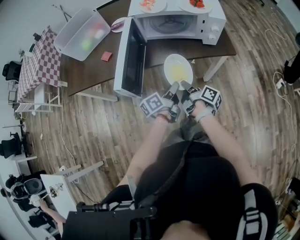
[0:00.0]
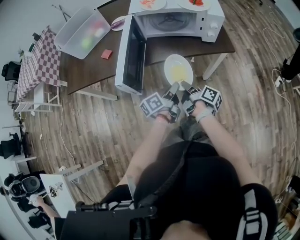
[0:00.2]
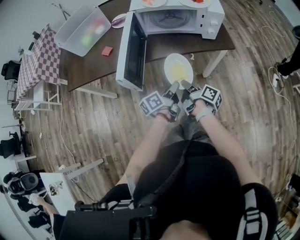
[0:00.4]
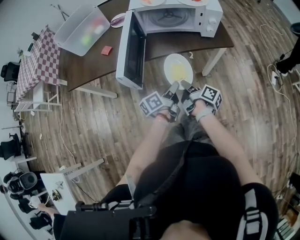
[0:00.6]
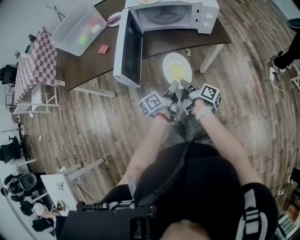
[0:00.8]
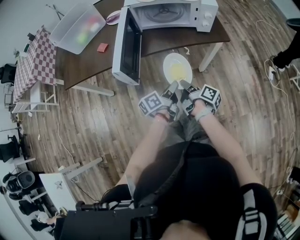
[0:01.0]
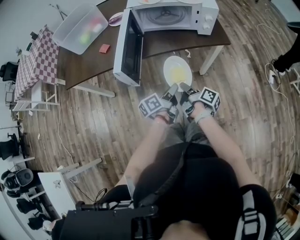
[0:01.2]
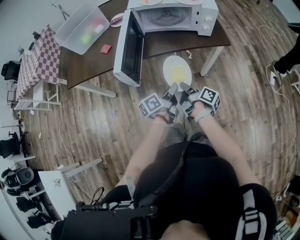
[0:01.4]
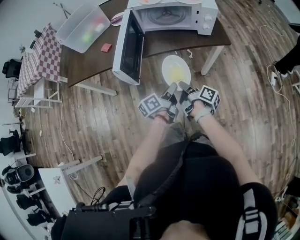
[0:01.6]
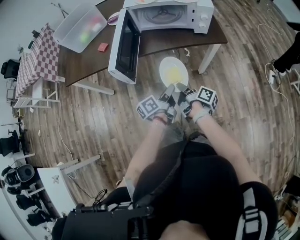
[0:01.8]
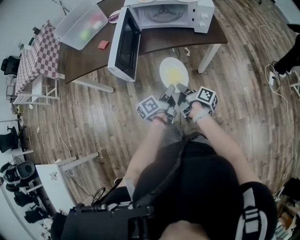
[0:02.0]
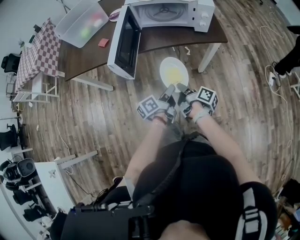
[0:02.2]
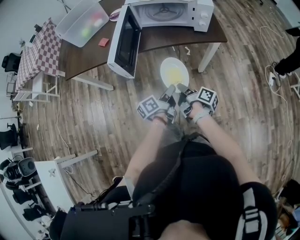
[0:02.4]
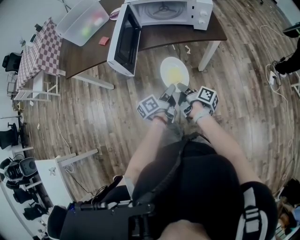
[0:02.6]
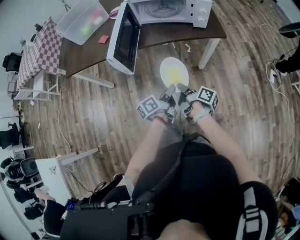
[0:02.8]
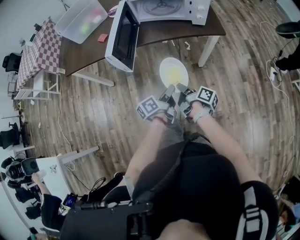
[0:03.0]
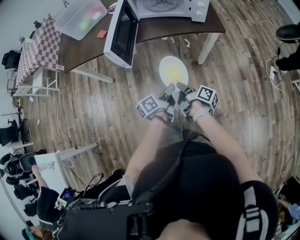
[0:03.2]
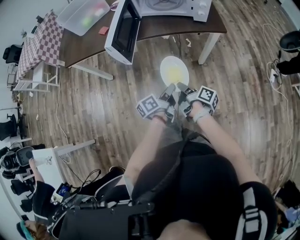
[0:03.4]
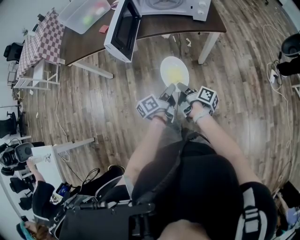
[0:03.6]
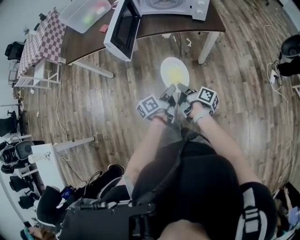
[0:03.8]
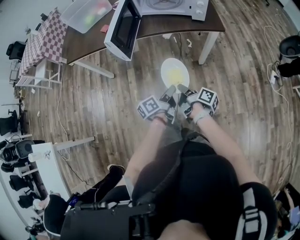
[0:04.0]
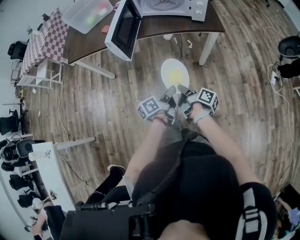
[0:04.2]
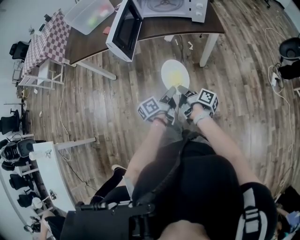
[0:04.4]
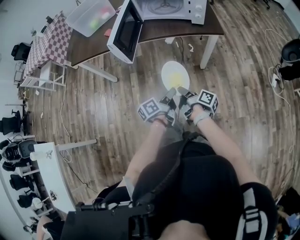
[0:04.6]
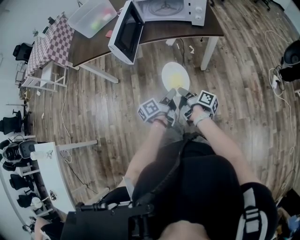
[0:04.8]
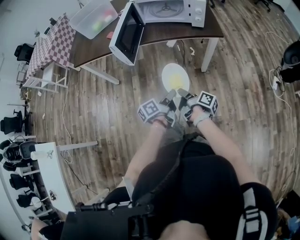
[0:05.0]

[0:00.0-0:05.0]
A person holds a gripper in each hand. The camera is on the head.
0:00.0 to 0:01.6: The left gripper shifts by about 10 cm.
0:01.6 to 0:03.4: The left gripper shifts by roughly 10 cm.

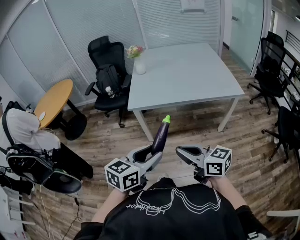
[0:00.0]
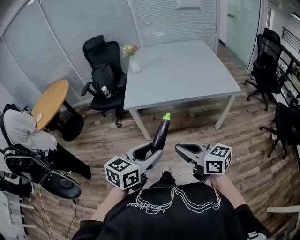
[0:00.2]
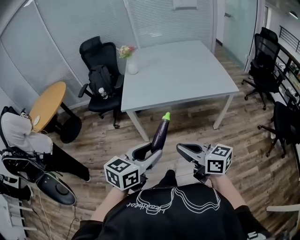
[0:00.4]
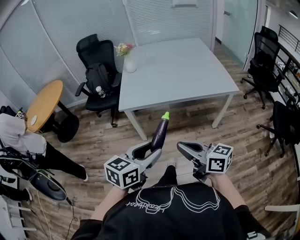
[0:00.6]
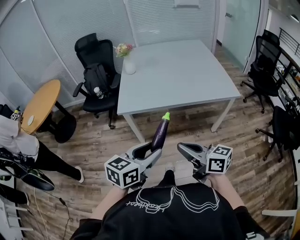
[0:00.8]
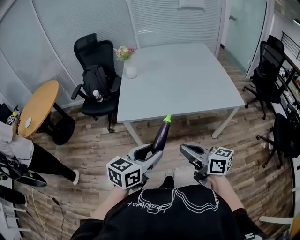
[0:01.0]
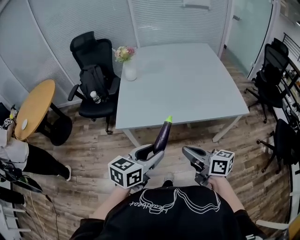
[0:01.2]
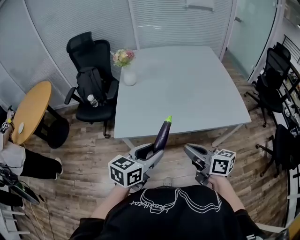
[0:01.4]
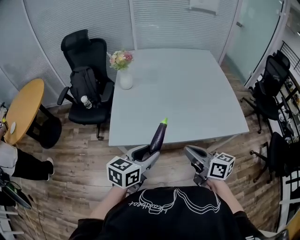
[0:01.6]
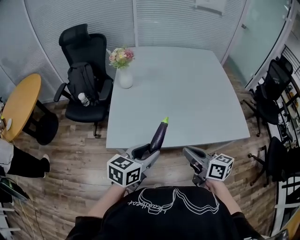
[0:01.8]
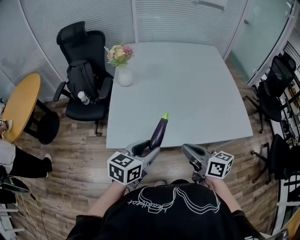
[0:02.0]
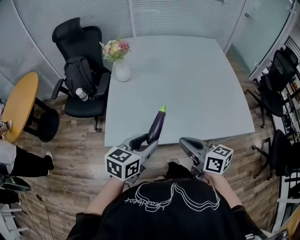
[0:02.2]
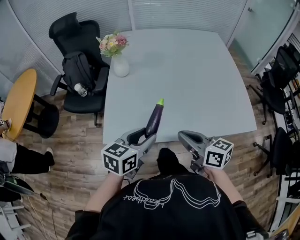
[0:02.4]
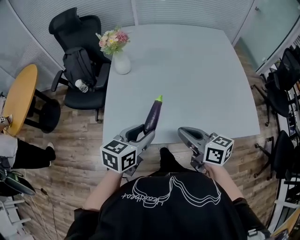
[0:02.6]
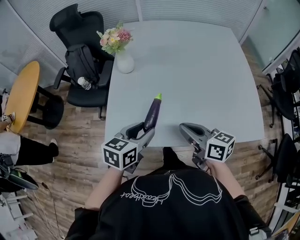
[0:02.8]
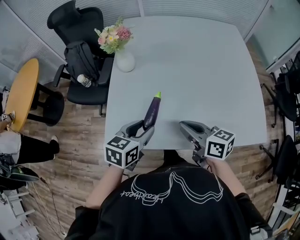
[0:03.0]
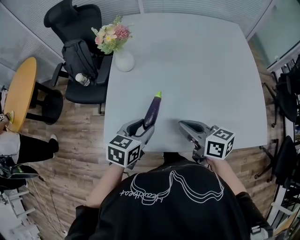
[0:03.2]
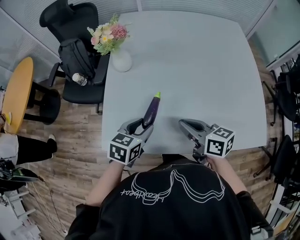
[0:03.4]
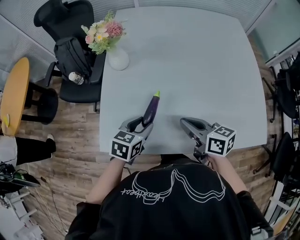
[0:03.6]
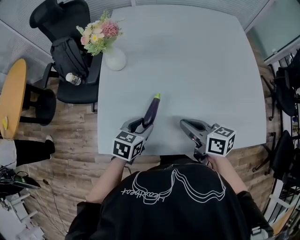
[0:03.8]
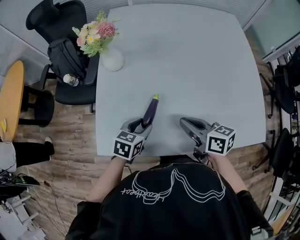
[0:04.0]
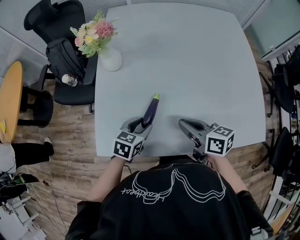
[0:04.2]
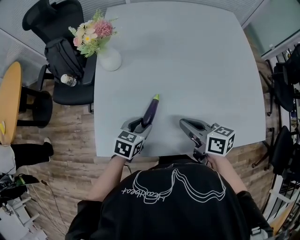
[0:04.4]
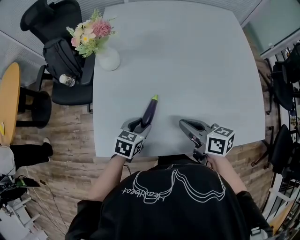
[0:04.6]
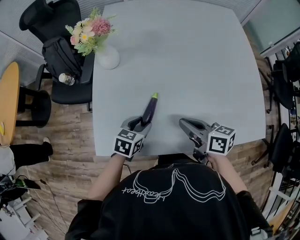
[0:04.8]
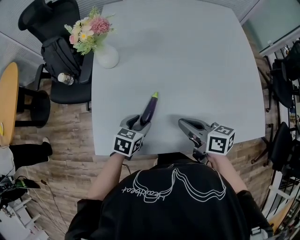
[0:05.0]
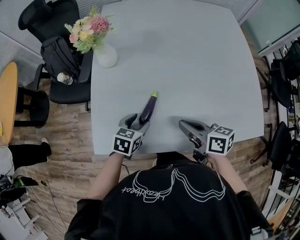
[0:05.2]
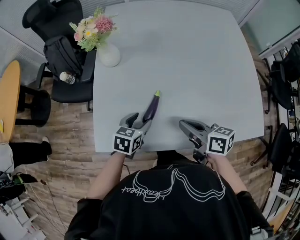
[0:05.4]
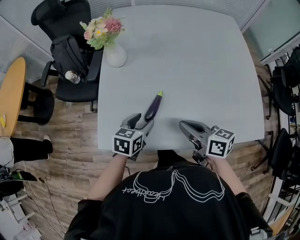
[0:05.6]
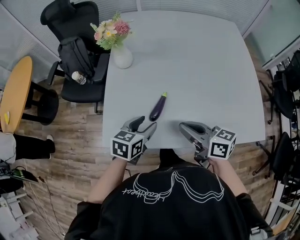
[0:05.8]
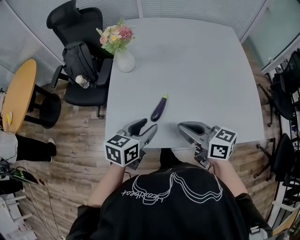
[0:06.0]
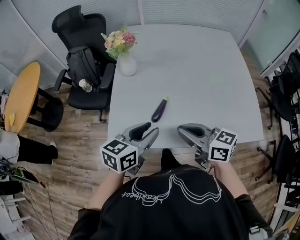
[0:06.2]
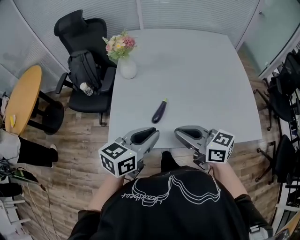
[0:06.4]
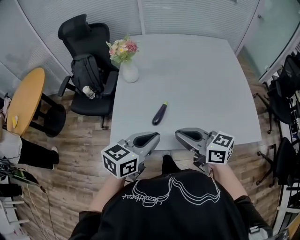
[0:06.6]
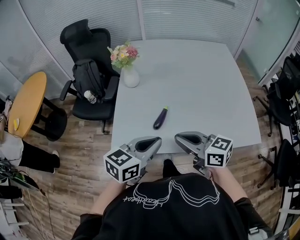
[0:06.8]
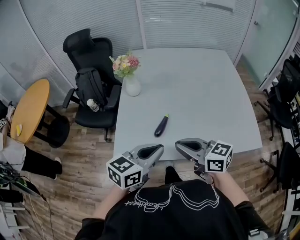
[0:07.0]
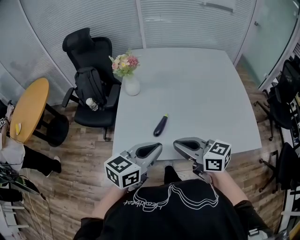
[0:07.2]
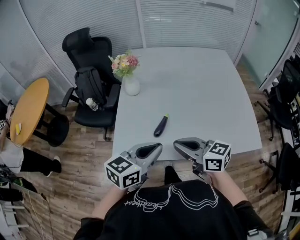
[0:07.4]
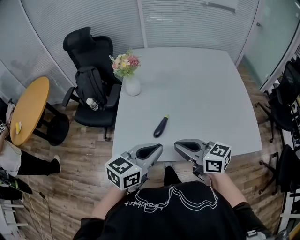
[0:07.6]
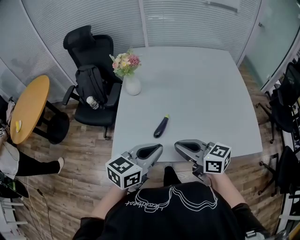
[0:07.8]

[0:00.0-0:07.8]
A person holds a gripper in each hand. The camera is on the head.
0:00.0 to 0:01.6: The grippers both shift forward by some 35 cm.
0:01.6 to 0:03.2: The left gripper shifts approximately 25 cm forward and downward; the right gripper is displaced forward by approximately 25 cm.
0:03.2 to 0:04.6: The right gripper heads downward, covering roughly 5 cm. Meanwhile the left gripper goes roughly 10 cm downward.
0:04.6 to 0:06.2: The right gripper travels upward, backward and to the left by roughly 15 cm, and turns by roughly 20 degrees; the left gripper shifts approximately 20 cm upward and backward, and swivels roughly 30 degrees.
0:06.2 to 0:07.8: The left gripper shifts by some 5 cm, and closes.

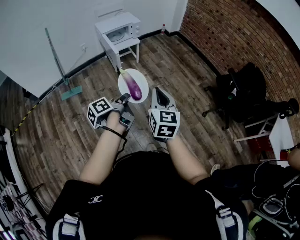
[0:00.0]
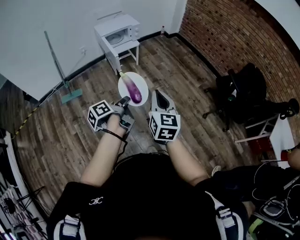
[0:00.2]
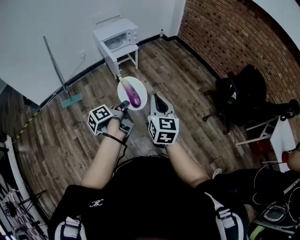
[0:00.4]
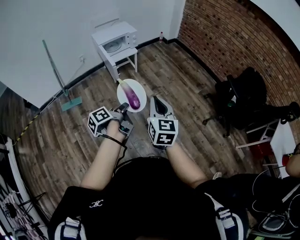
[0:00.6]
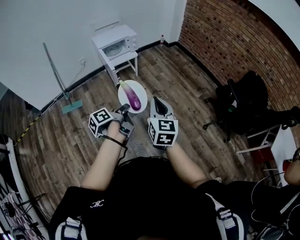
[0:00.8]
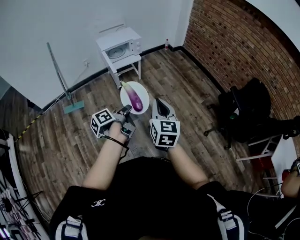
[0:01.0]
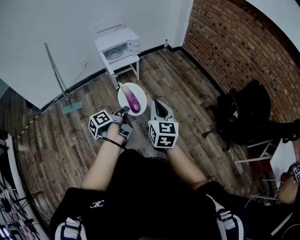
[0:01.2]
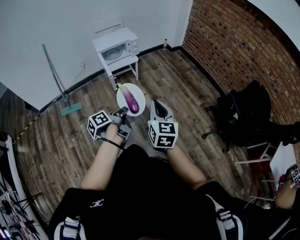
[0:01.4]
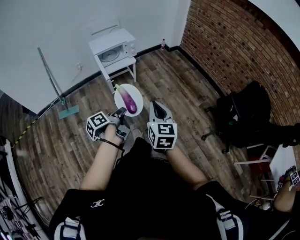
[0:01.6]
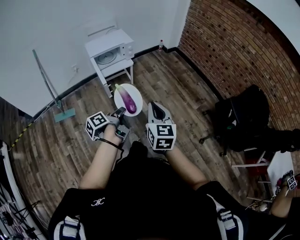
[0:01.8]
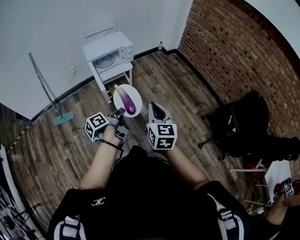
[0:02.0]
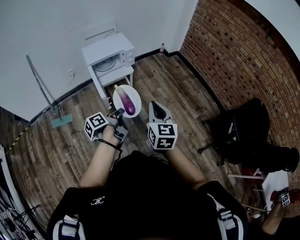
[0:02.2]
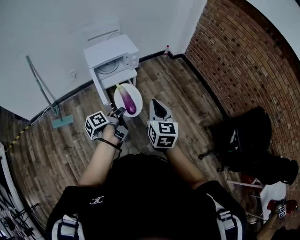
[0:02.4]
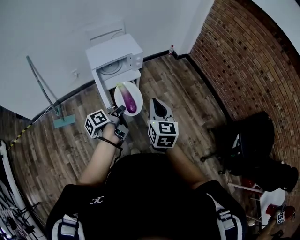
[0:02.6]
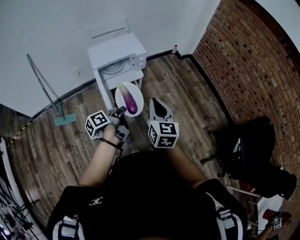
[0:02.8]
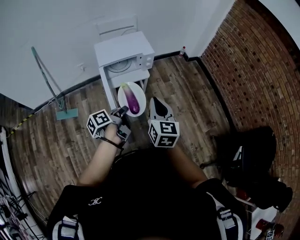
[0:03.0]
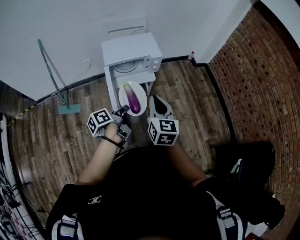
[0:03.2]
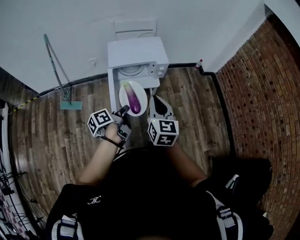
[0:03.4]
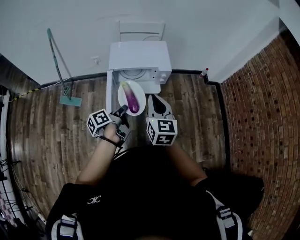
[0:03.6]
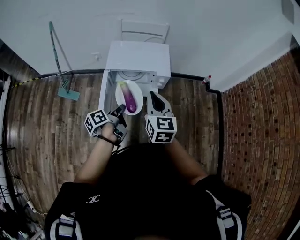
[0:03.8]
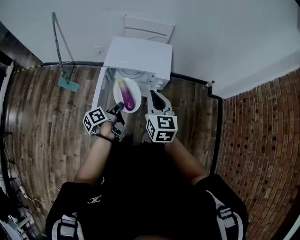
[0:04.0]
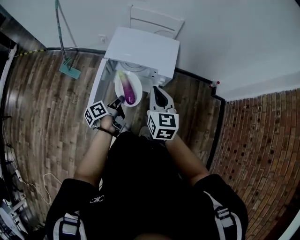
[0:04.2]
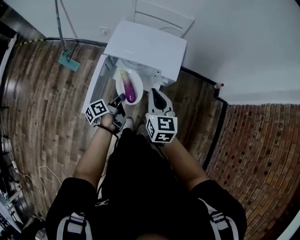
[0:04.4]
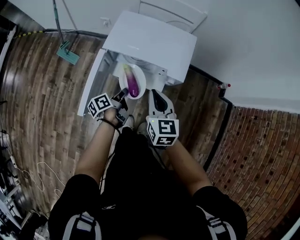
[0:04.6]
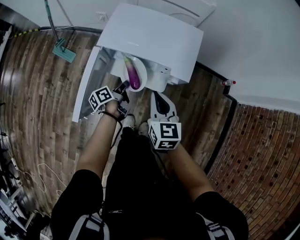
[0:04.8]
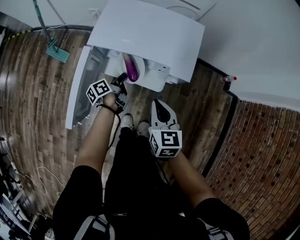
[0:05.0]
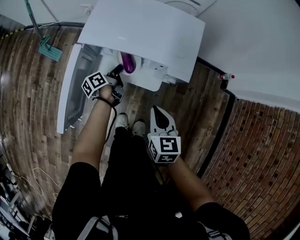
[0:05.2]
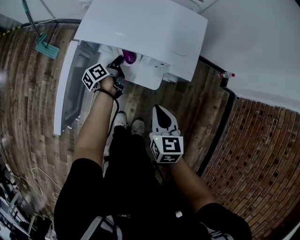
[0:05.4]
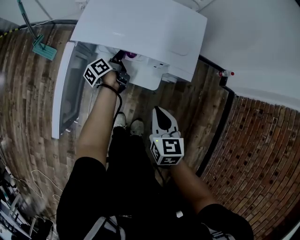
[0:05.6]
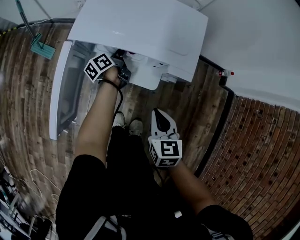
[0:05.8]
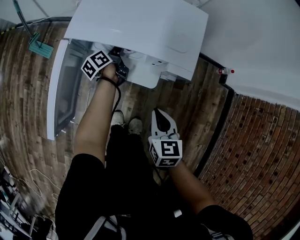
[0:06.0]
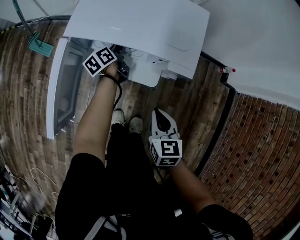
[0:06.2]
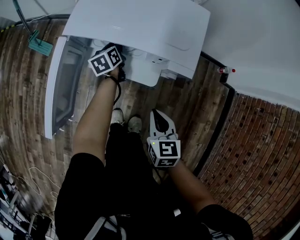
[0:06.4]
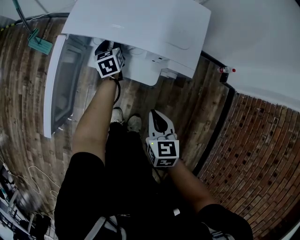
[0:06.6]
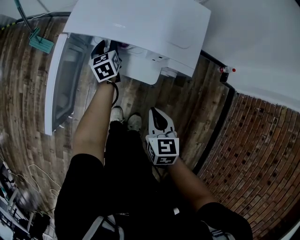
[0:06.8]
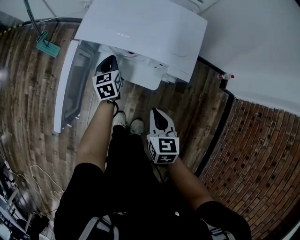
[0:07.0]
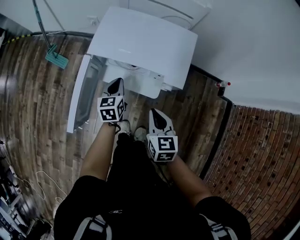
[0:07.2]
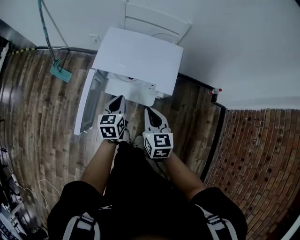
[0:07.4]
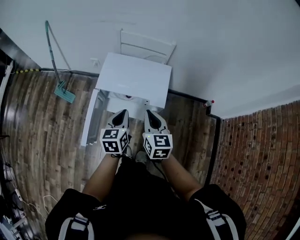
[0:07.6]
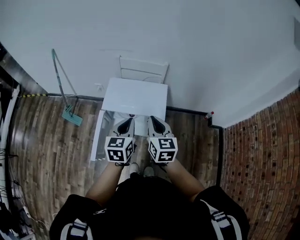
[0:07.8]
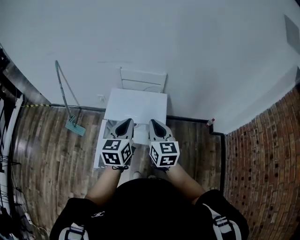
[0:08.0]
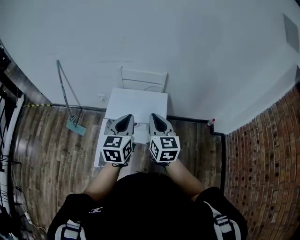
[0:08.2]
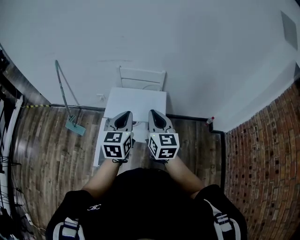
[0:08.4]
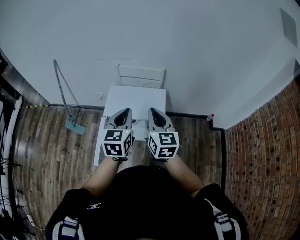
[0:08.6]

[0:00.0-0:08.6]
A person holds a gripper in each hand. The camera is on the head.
0:00.0 to 0:01.4: The right gripper ends up roughly 15 cm from where it was.
0:01.4 to 0:02.8: The right gripper moves some 40 cm.
0:02.8 to 0:04.4: The right gripper shifts by about 40 cm, and turns by some 40 degrees.
0:04.4 to 0:05.8: The right gripper moves downward, approximately 25 cm.
0:05.8 to 0:07.2: The right gripper moves upward, some 5 cm.
0:07.2 to 0:08.6: The right gripper travels upward by approximately 35 cm, and changes its angle by some 30 degrees.

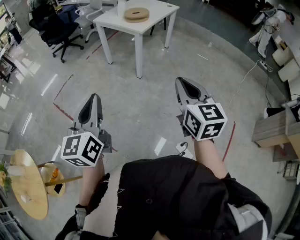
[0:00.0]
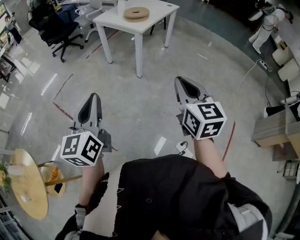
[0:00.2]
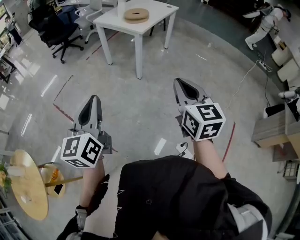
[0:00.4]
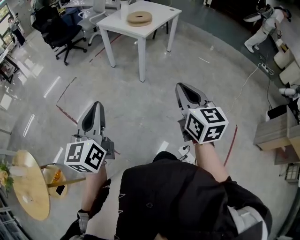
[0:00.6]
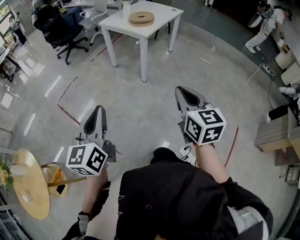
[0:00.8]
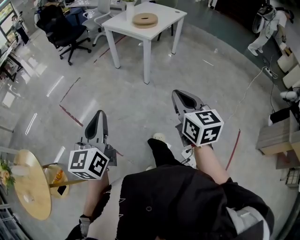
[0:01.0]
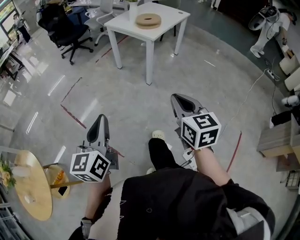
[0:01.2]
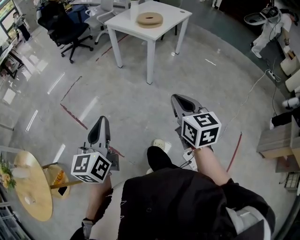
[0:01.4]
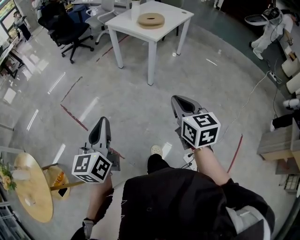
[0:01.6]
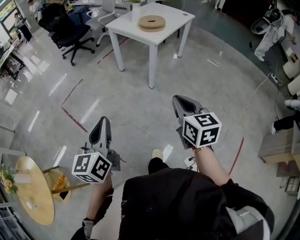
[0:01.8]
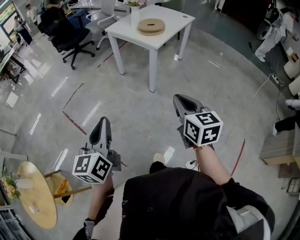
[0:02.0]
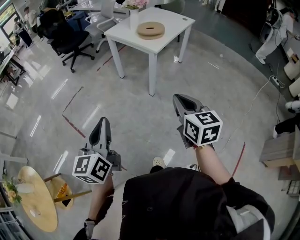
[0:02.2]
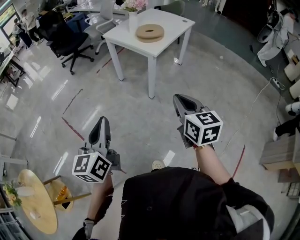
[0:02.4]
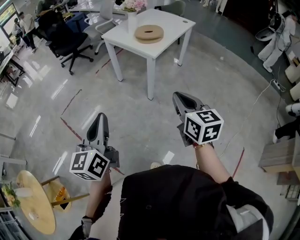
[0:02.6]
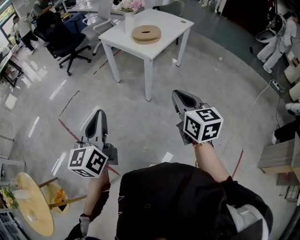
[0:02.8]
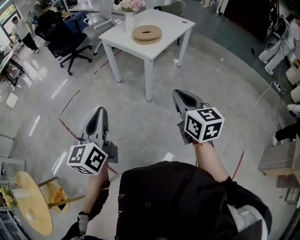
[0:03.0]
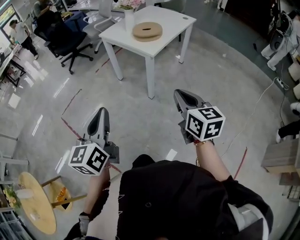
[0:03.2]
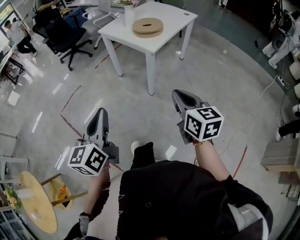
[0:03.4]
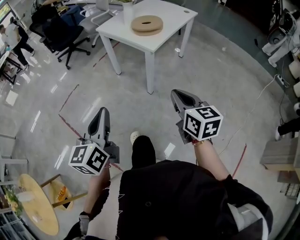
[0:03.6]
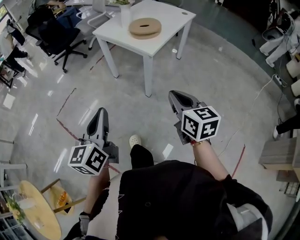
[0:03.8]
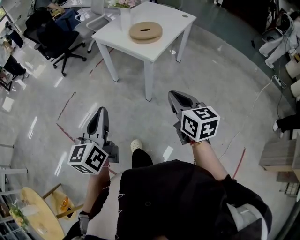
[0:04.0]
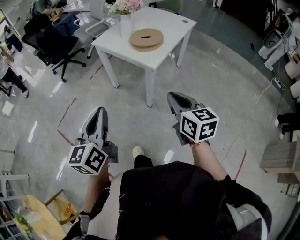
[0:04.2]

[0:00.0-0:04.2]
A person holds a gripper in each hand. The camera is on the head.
0:00.0 to 0:01.4: The right gripper shifts approximately 10 cm to the left and downward, while the left gripper ends up some 5 cm from where it was.
0:01.4 to 0:02.8: The two grippers go about 20 cm forward.
0:02.8 to 0:04.2: Both grippers move forward, roughly 15 cm.
